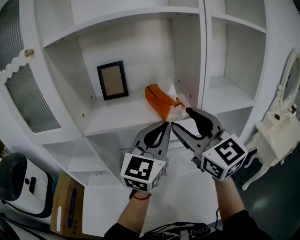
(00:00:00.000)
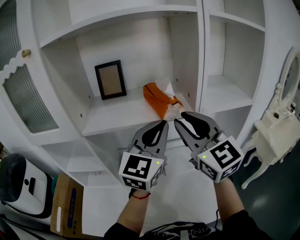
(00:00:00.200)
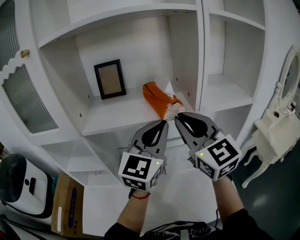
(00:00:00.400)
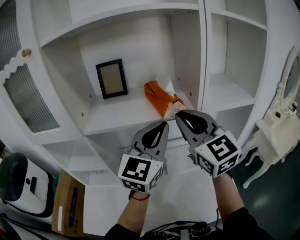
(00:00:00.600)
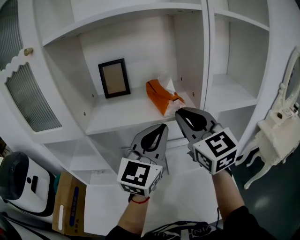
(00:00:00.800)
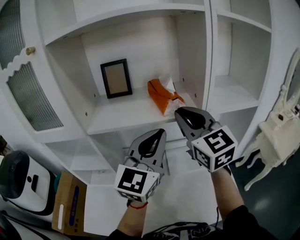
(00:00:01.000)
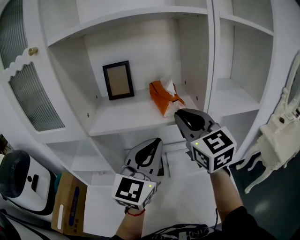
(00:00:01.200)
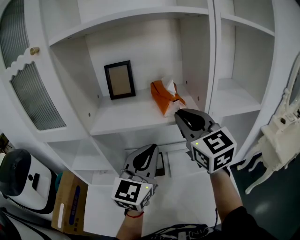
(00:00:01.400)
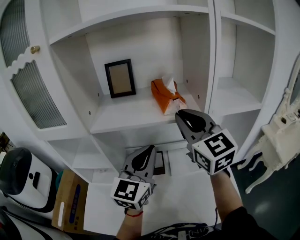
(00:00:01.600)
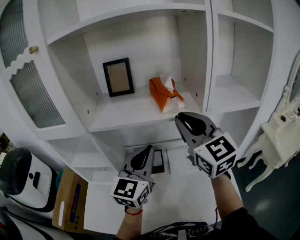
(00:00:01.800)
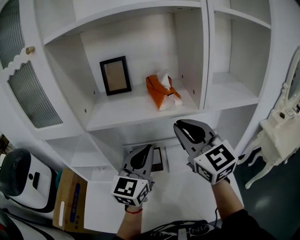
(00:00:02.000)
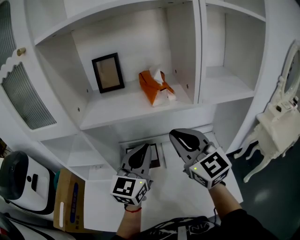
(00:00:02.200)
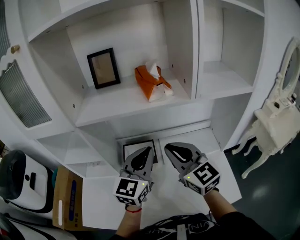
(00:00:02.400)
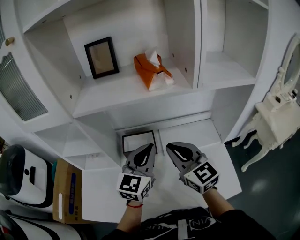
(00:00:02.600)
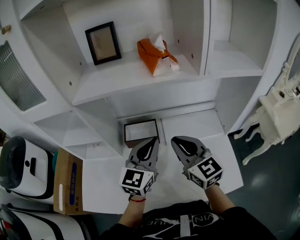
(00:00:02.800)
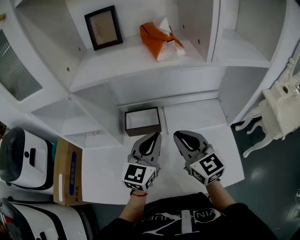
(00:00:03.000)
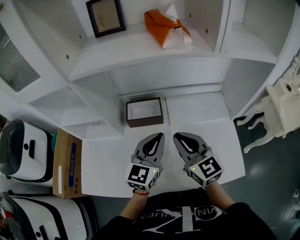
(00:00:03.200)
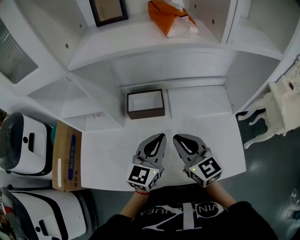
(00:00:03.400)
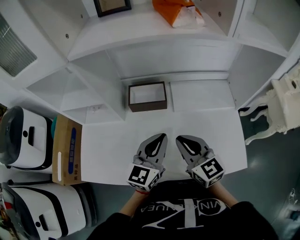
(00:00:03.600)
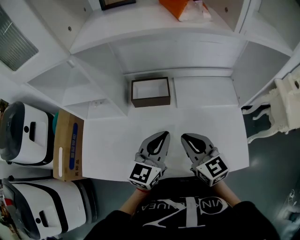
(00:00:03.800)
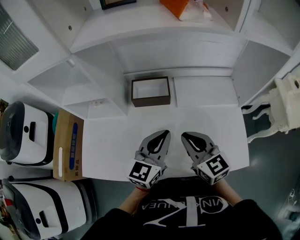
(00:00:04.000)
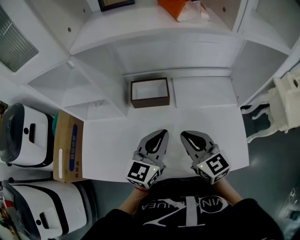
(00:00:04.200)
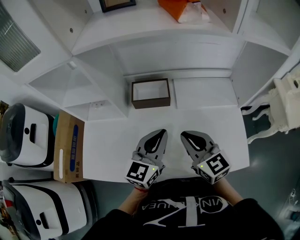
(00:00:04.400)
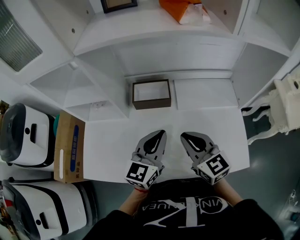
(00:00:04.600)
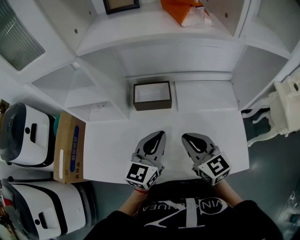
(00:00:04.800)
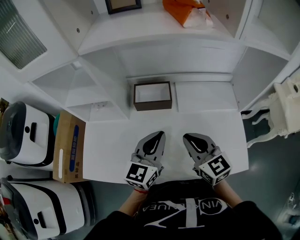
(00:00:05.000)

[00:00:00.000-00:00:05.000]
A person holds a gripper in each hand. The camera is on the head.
00:00:00.000 to 00:00:01.600: The right gripper closes up. Meanwhile the left gripper heads to the left and downward, covering roughly 10 cm.
00:00:01.600 to 00:00:03.400: The right gripper heads downward and backward, covering approximately 30 cm, and changes its angle by approximately 20 degrees, while the left gripper is displaced downward by roughly 20 cm.
00:00:03.400 to 00:00:05.000: The grippers stay close to where they were, moving slightly.

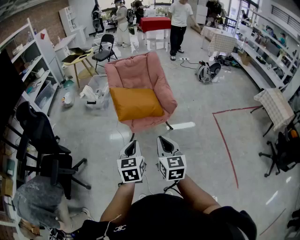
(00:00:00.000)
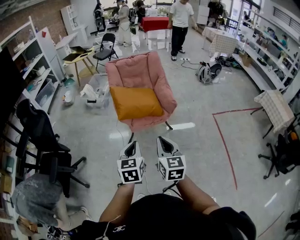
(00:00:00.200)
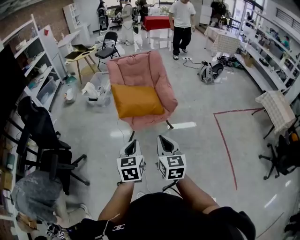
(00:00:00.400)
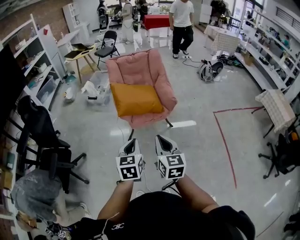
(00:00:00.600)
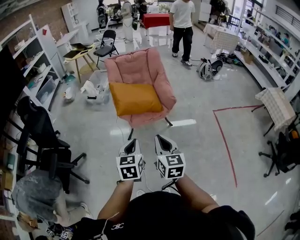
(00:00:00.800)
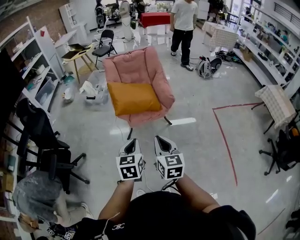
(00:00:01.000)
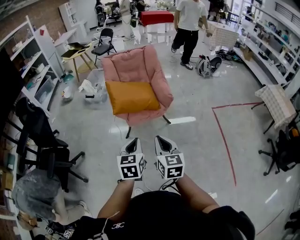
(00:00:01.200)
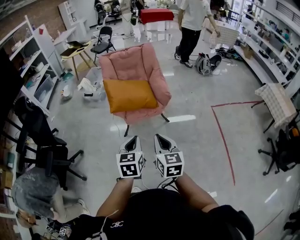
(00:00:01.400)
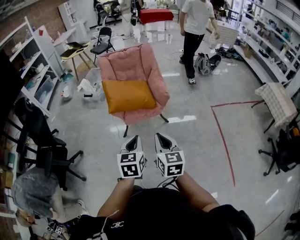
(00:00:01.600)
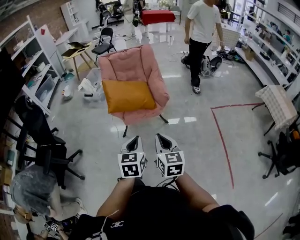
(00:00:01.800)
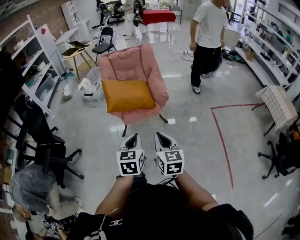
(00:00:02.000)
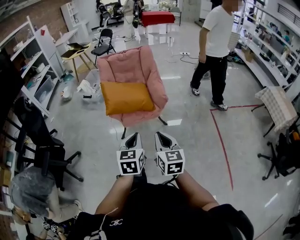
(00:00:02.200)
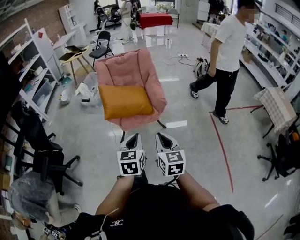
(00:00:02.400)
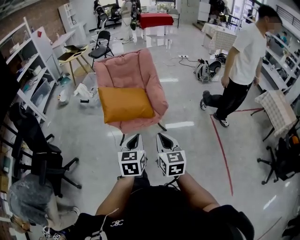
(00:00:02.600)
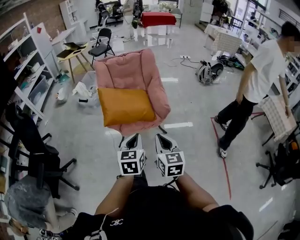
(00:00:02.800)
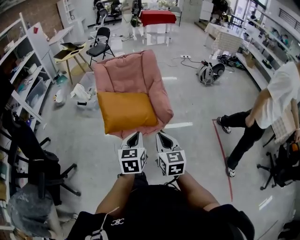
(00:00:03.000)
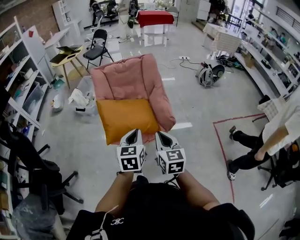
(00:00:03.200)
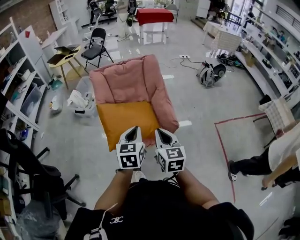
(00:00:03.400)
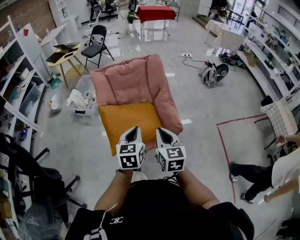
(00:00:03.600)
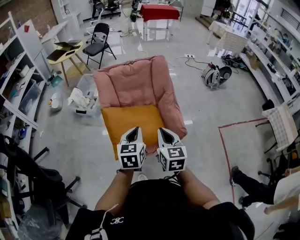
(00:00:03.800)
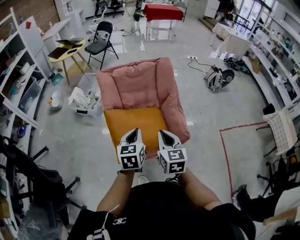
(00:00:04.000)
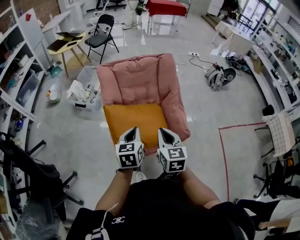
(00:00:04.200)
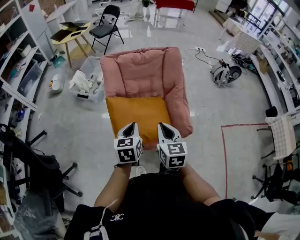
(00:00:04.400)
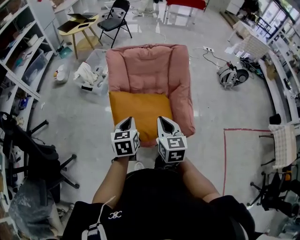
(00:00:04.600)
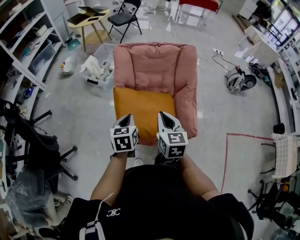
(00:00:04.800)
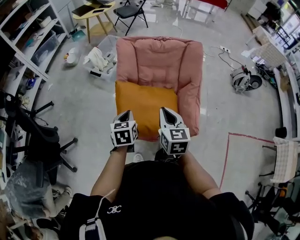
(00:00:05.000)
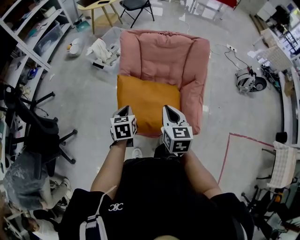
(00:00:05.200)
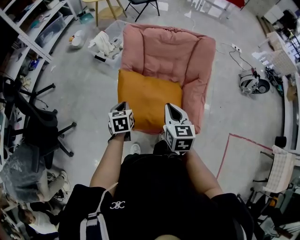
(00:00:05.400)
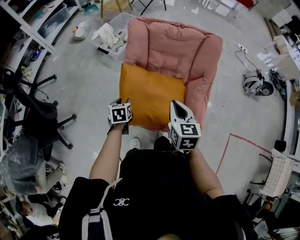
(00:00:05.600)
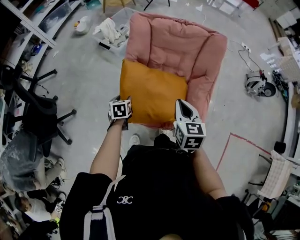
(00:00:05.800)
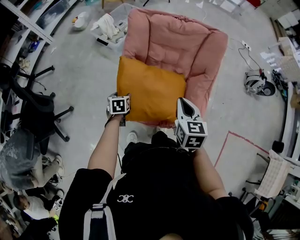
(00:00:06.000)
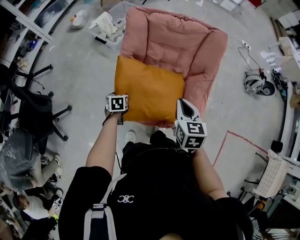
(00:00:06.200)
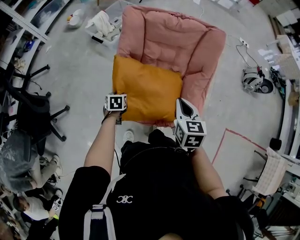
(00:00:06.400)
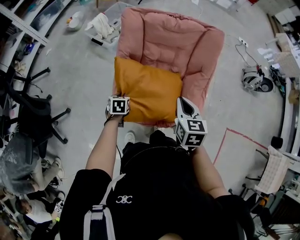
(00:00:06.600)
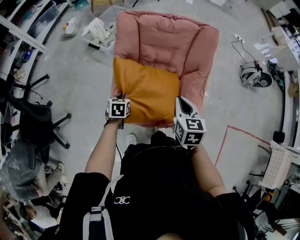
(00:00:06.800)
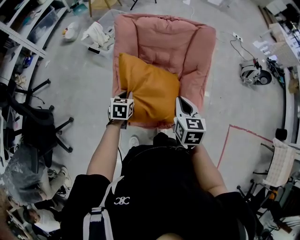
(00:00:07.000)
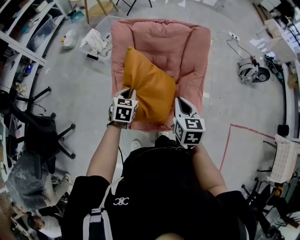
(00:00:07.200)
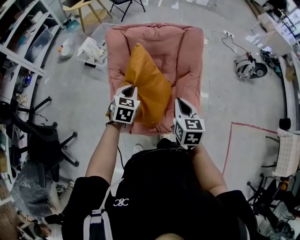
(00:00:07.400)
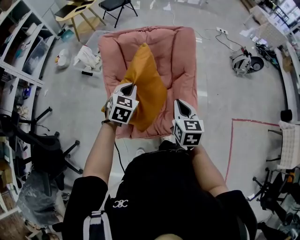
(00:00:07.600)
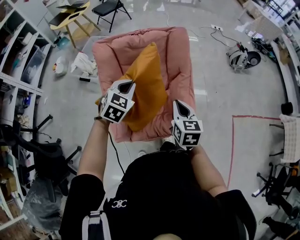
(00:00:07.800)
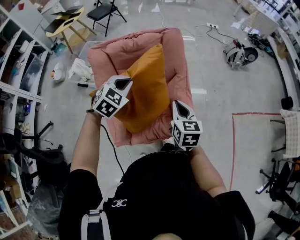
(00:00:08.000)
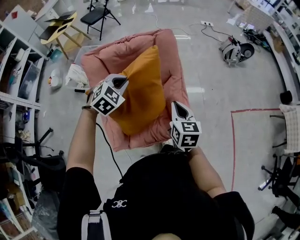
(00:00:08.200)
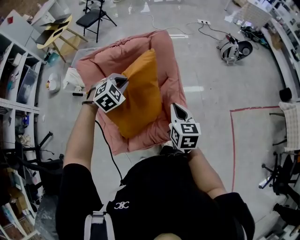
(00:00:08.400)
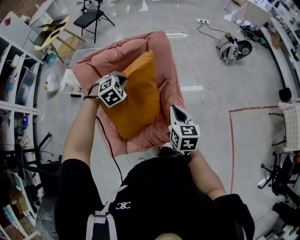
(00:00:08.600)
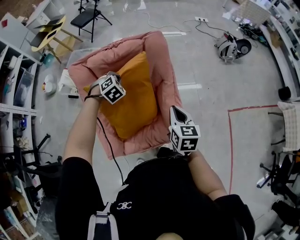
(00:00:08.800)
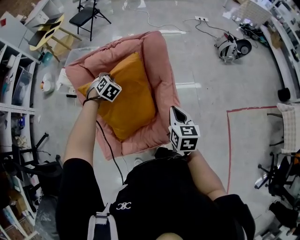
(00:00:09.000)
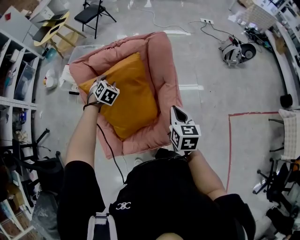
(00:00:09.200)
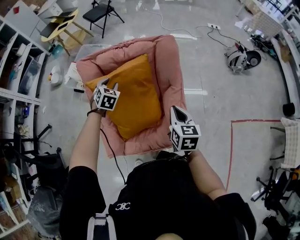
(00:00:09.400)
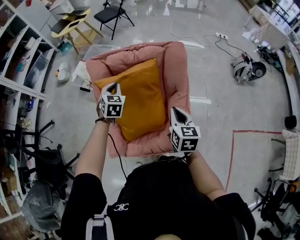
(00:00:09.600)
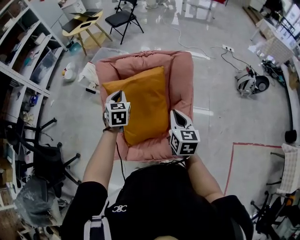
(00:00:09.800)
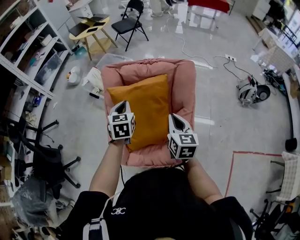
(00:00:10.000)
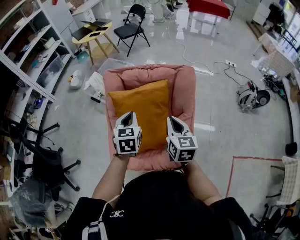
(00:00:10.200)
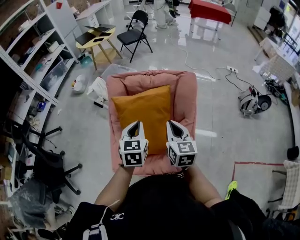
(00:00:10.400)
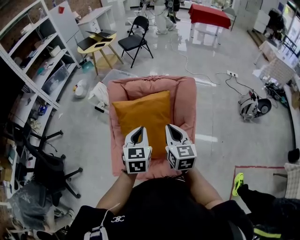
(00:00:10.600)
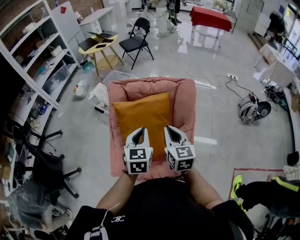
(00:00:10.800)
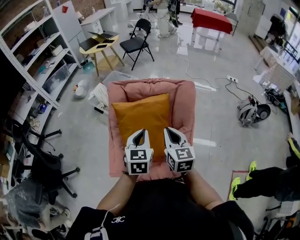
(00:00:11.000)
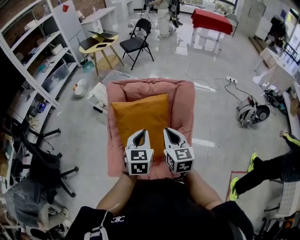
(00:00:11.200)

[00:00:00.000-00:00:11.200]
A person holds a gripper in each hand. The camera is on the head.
00:00:00.000 to 00:00:01.600: The grippers both shift to the right by about 10 cm.
00:00:01.600 to 00:00:03.200: Both grippers move forward, about 30 cm.
00:00:03.200 to 00:00:04.800: The right gripper heads forward and to the left, covering roughly 30 cm; the left gripper heads forward, to the left and downward, covering about 30 cm, and changes its angle by some 20 degrees.
00:00:04.800 to 00:00:06.400: The left gripper moves downward, roughly 25 cm, swivels roughly 30 degrees, and opens its fingers. Meanwhile the right gripper moves to the right, downward and forward, roughly 10 cm.
00:00:06.400 to 00:00:08.000: The right gripper moves some 10 cm, and turns by some 20 degrees; the left gripper travels upward by some 30 cm, rolls clockwise, seen from behind, by approximately 70 degrees, and closes up.
00:00:08.000 to 00:00:09.600: The left gripper moves approximately 15 cm, swivels some 40 degrees, and opens, then closes again; the right gripper ends up some 10 cm from where it was.
00:00:09.600 to 00:00:11.200: The left gripper travels backward, upward and to the right by roughly 20 cm, and turns by approximately 20 degrees. Meanwhile the right gripper moves upward and to the left, approximately 10 cm, and turns by about 20 degrees.

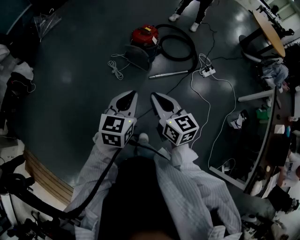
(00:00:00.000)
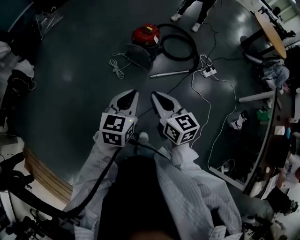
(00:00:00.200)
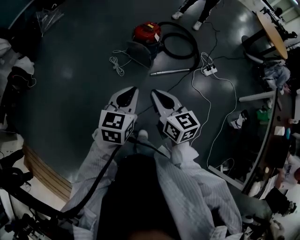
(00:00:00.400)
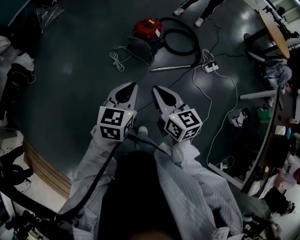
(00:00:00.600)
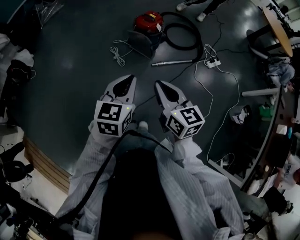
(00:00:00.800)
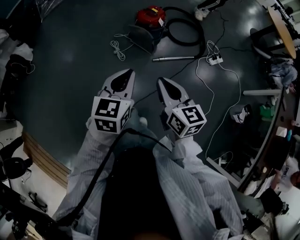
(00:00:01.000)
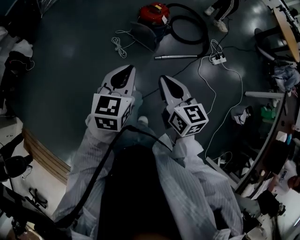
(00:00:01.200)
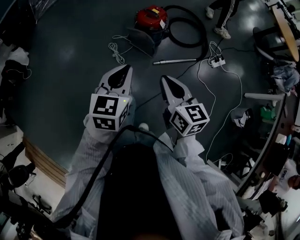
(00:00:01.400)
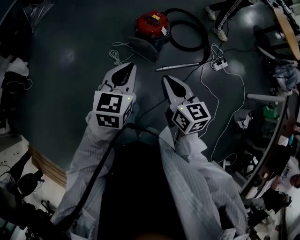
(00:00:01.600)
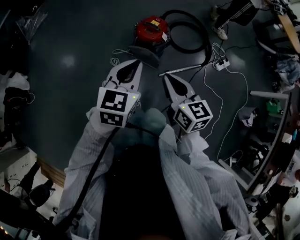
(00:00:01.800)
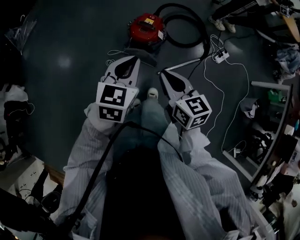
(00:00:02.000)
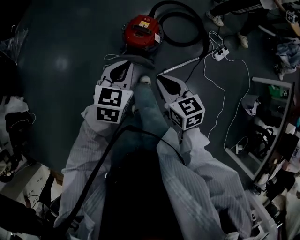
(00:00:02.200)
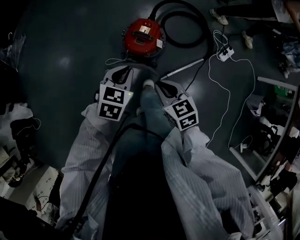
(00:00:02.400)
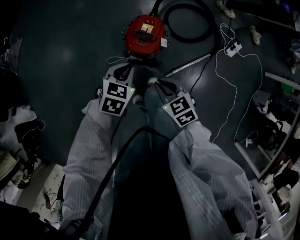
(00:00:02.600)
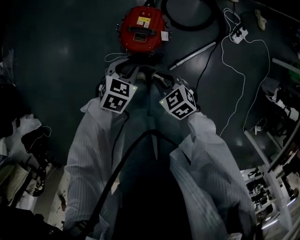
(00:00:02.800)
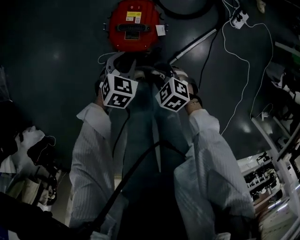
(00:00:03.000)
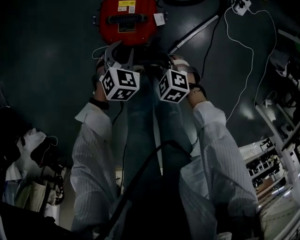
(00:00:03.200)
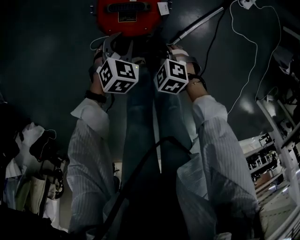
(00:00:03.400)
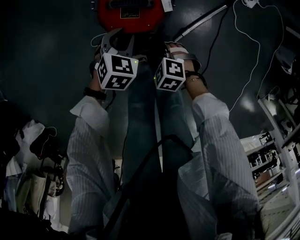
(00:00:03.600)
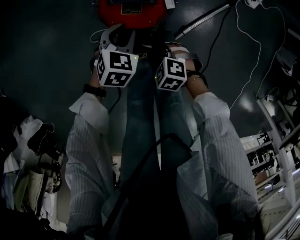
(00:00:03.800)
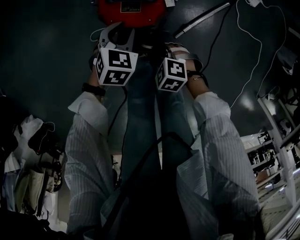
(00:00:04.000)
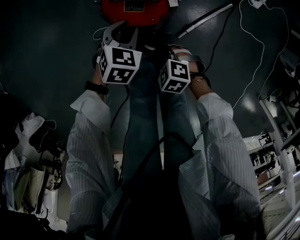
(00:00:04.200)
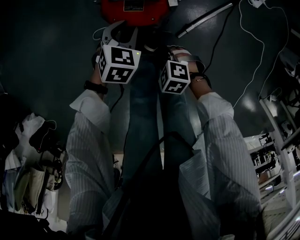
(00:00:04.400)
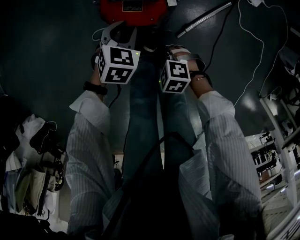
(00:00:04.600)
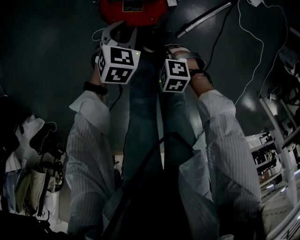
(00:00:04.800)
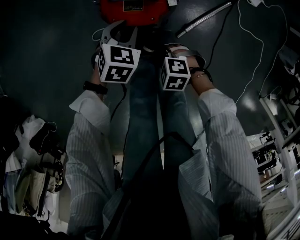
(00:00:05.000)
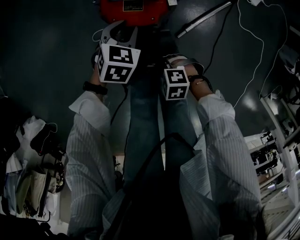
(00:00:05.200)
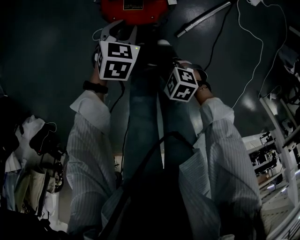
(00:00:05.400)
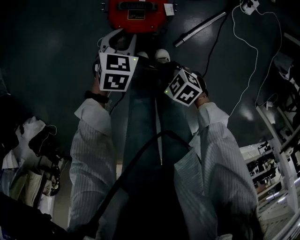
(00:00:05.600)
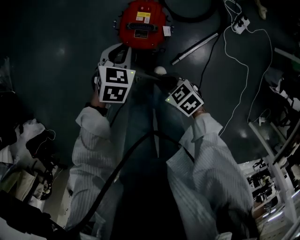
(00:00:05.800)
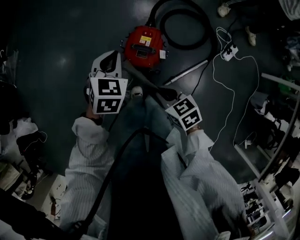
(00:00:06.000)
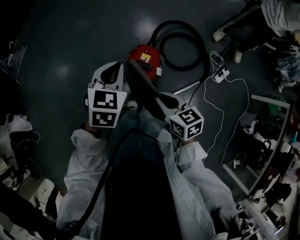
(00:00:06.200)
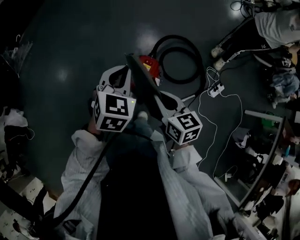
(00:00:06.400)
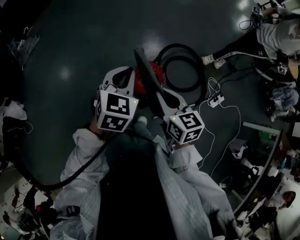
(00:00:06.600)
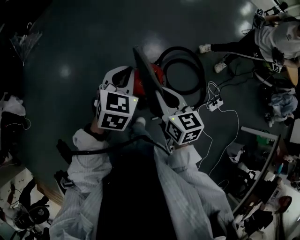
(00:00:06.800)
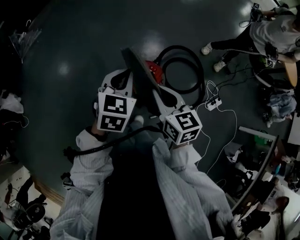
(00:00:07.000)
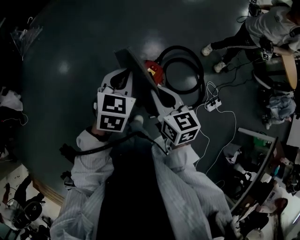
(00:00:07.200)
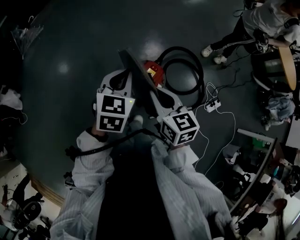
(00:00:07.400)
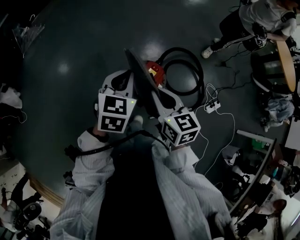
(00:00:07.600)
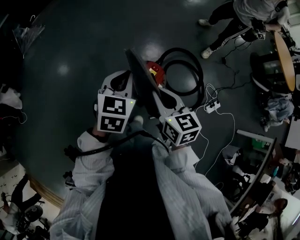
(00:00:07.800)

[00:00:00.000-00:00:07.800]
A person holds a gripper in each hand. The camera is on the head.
00:00:00.000 to 00:00:01.600: Both grippers travel together forward, approximately 25 cm.
00:00:01.600 to 00:00:03.200: The two grippers go about 70 cm downward and forward. The right gripper tips its fingers downward by some 50 degrees, and opens its fingers; the left gripper tips its fingers downward by approximately 30 degrees, and opens its fingers.
00:00:03.200 to 00:00:04.600: The right gripper shifts by approximately 10 cm.
00:00:04.600 to 00:00:06.200: Both grippers travel together upward, some 50 cm. The right gripper tips its fingers upward by approximately 30 degrees. Meanwhile the left gripper swivels approximately 30 degrees, and closes up.
00:00:06.200 to 00:00:07.800: The right gripper travels upward and to the left by about 15 cm; the left gripper moves to the left, upward and backward, some 10 cm.
